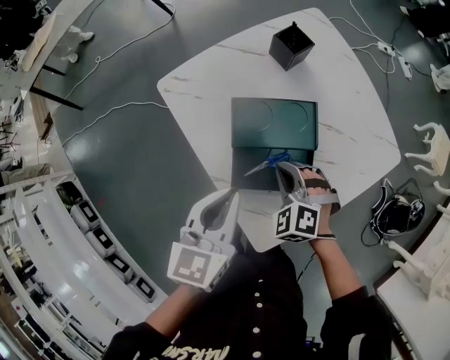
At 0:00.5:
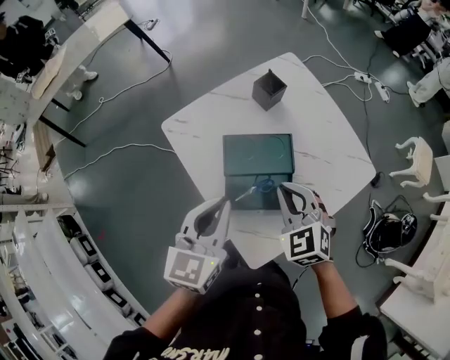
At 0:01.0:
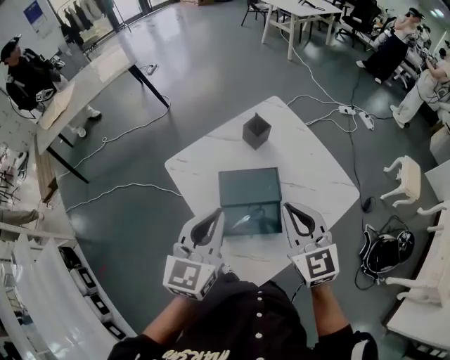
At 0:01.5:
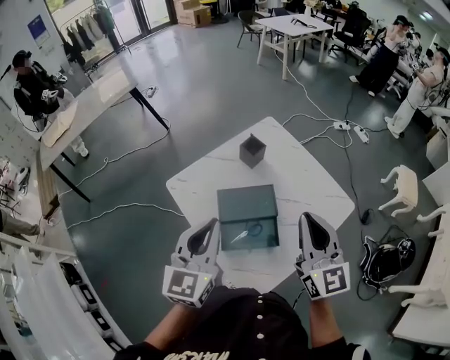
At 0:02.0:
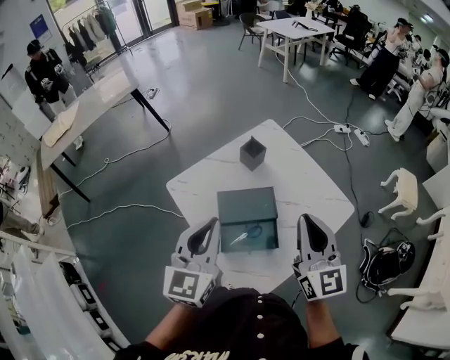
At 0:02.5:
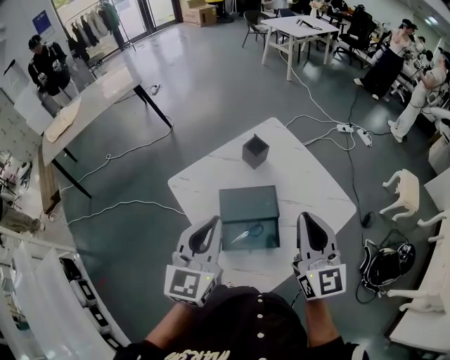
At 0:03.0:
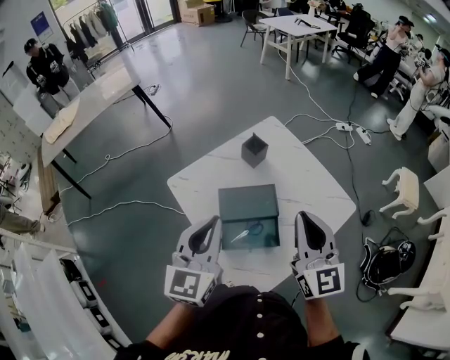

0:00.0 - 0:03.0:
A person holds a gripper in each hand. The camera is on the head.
0:00.0 - 0:01.5: The right gripper shifts about 35 cm upward, and points its fingers some 60 degrees further upward. Meanwhile the left gripper moves upward, about 15 cm, and swivels roughly 20 degrees.
0:01.5 - 0:03.0: The grippers make only small movements.

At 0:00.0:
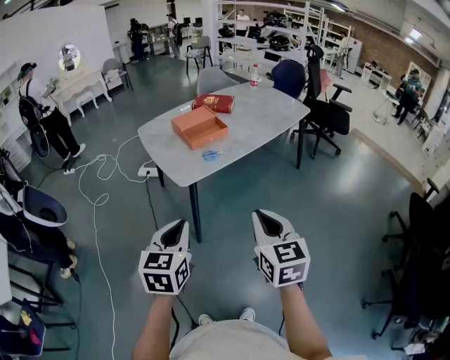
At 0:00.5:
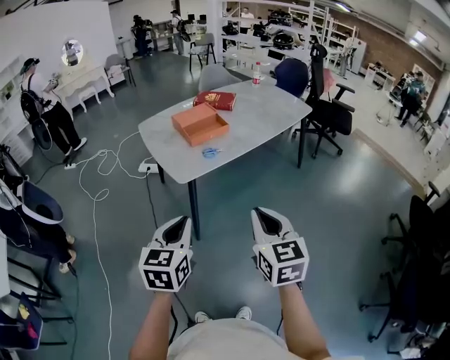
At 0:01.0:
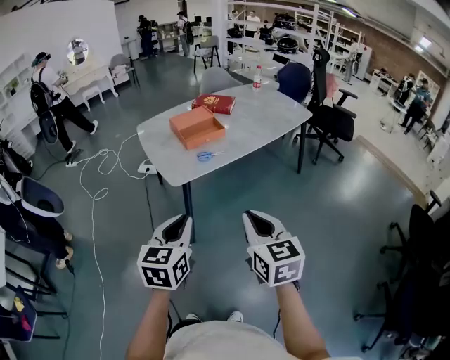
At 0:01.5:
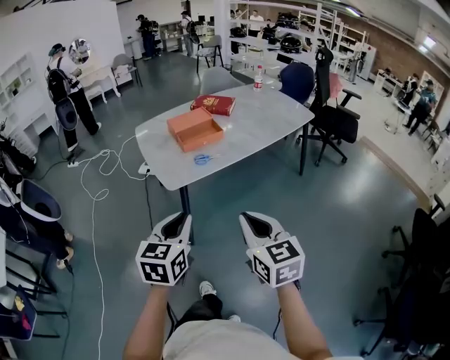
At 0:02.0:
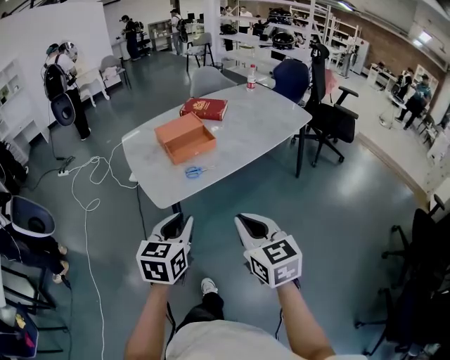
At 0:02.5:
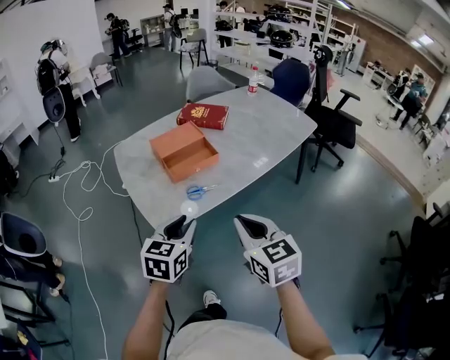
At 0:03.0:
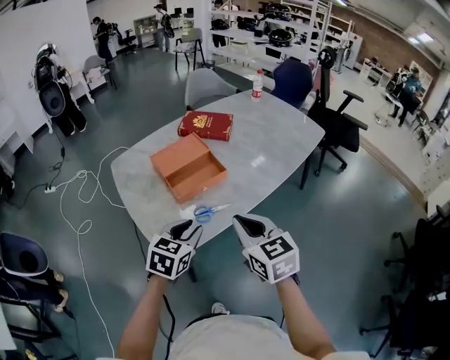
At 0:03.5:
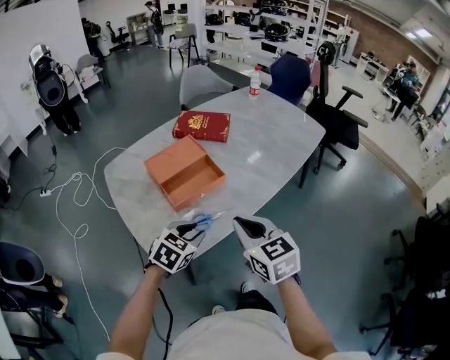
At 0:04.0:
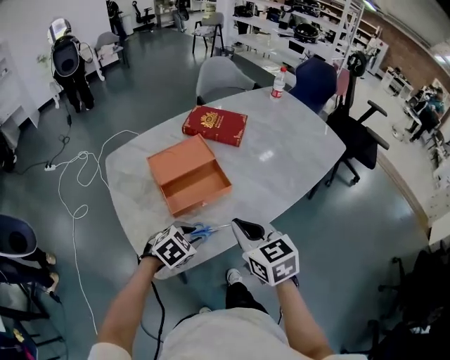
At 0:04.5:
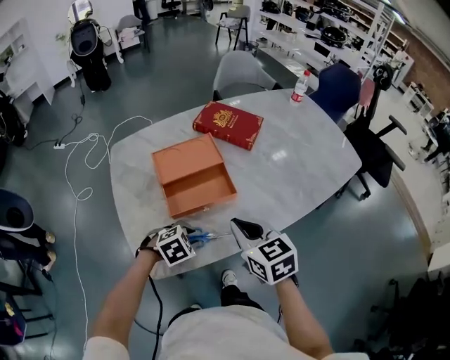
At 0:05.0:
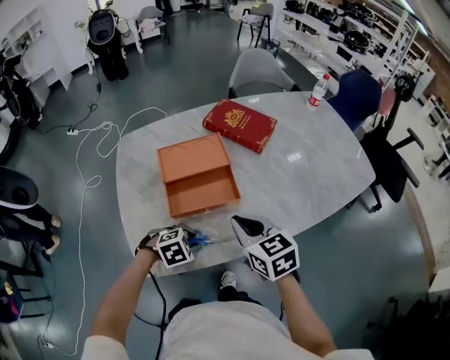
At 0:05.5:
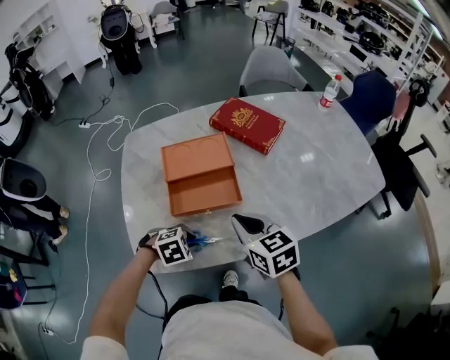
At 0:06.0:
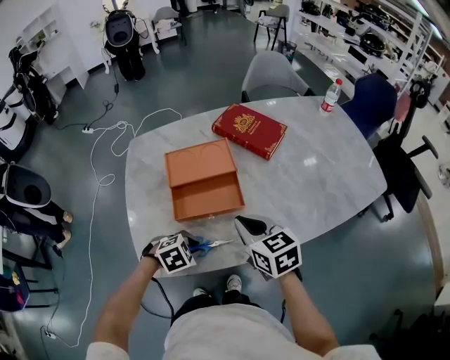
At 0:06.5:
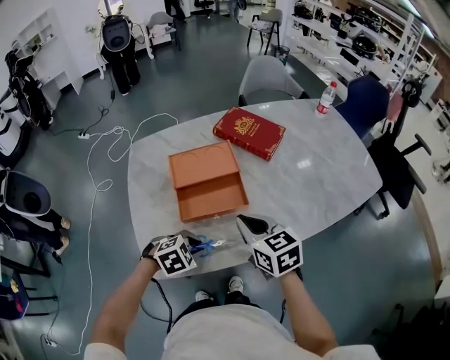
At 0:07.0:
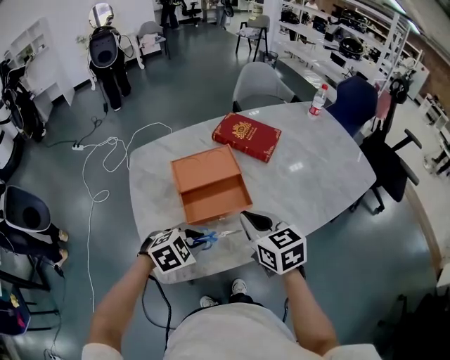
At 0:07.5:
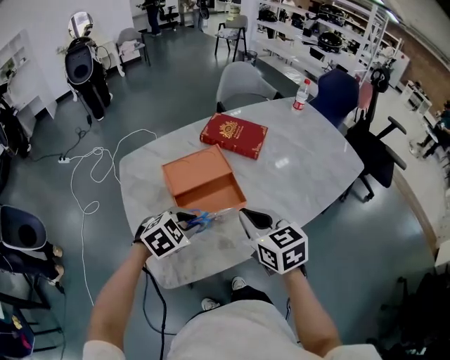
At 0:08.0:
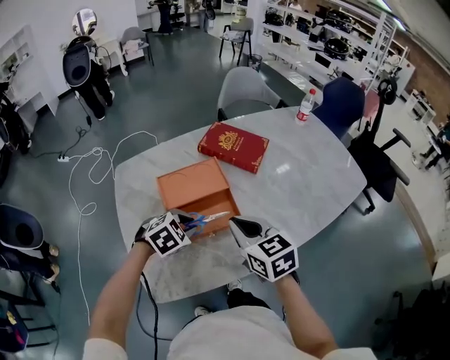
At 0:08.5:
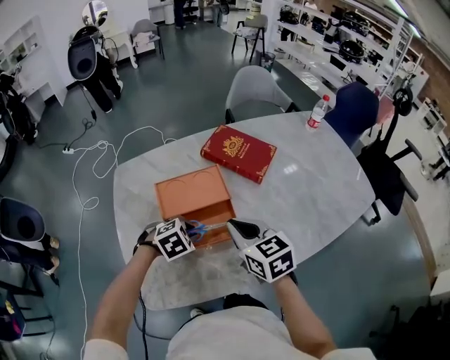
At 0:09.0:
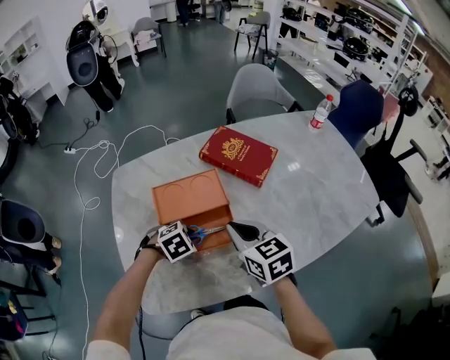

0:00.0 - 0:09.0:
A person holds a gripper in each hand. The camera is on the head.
0:00.0 - 0:02.0: Both grippers move forward and to the right, some 15 cm.
0:02.0 - 0:04.5: The left gripper heads forward and downward, covering about 40 cm, and points its fingers roughly 40 degrees further downward. The right gripper goes roughly 40 cm forward.
0:04.5 - 0:07.0: The right gripper shifts by about 5 cm. Meanwhile the left gripper goes about 10 cm upward.
0:07.0 - 0:09.0: The right gripper is displaced forward by roughly 10 cm. Meanwhile the left gripper is displaced forward and downward by roughly 15 cm.

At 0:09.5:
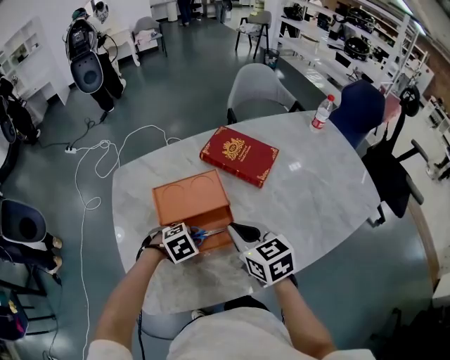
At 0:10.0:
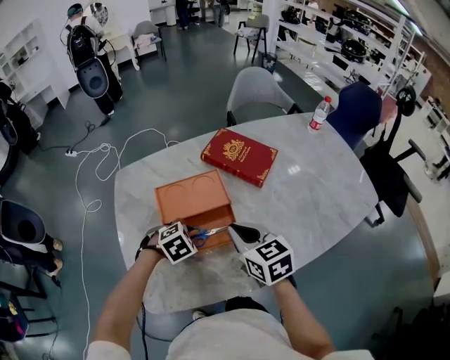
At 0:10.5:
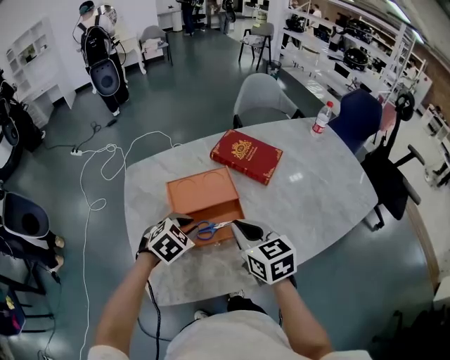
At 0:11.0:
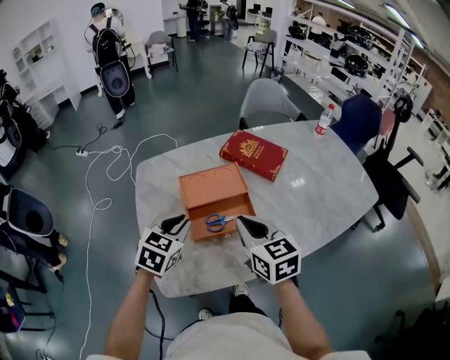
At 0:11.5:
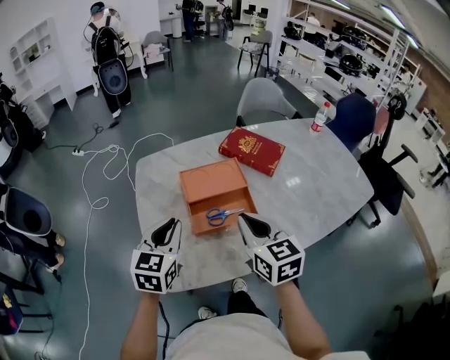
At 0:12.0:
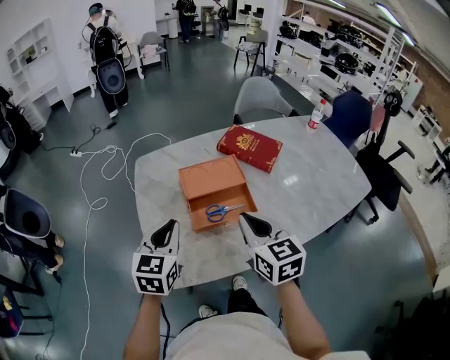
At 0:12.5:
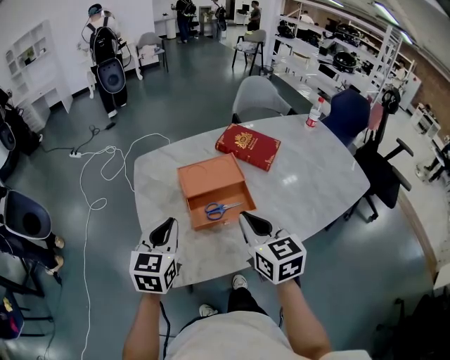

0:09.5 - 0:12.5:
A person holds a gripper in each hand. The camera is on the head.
0:09.5 - 0:11.0: The right gripper is displaced backward and upward by some 10 cm. Meanwhile the left gripper moves upward and to the left, approximately 20 cm, and points its fingers roughly 40 degrees further upward.
0:11.0 - 0:12.5: The right gripper ends up about 5 cm from where it was, while the left gripper heads backward, covering approximately 5 cm, and swivels approximately 20 degrees.

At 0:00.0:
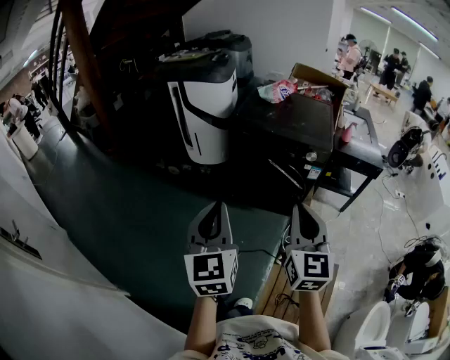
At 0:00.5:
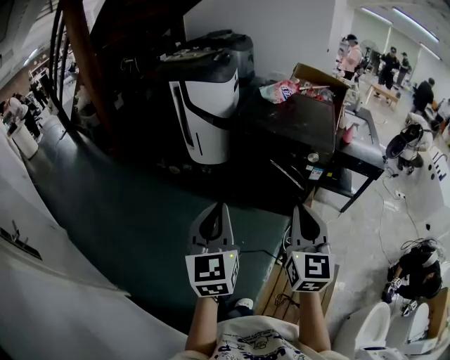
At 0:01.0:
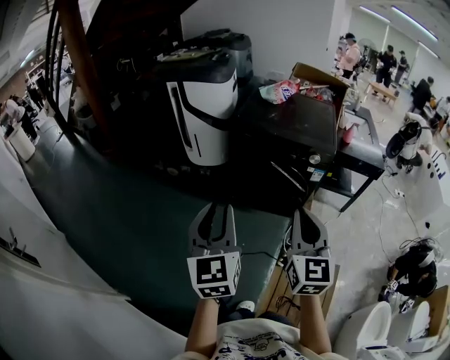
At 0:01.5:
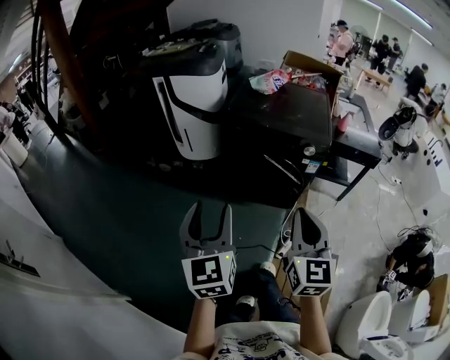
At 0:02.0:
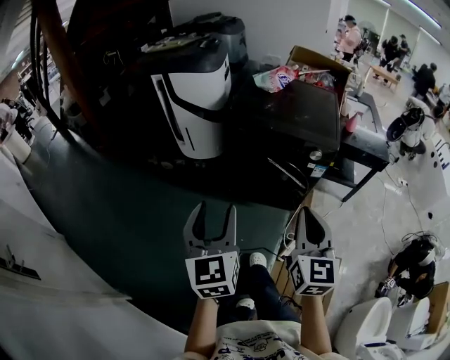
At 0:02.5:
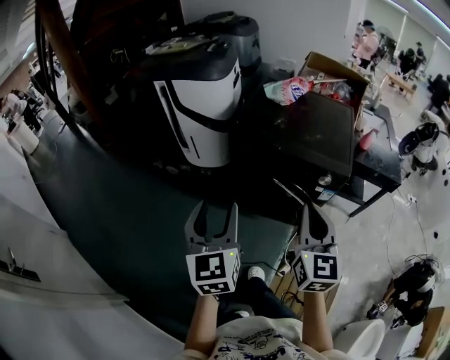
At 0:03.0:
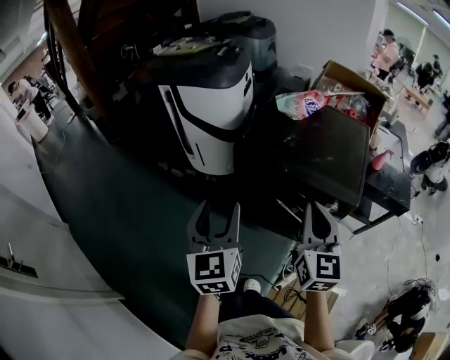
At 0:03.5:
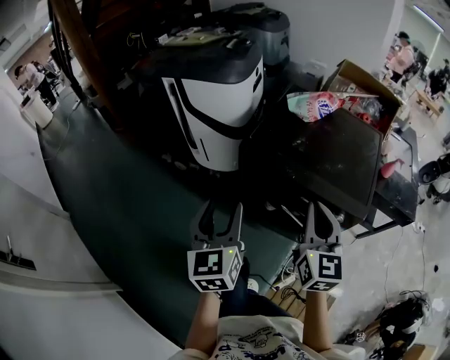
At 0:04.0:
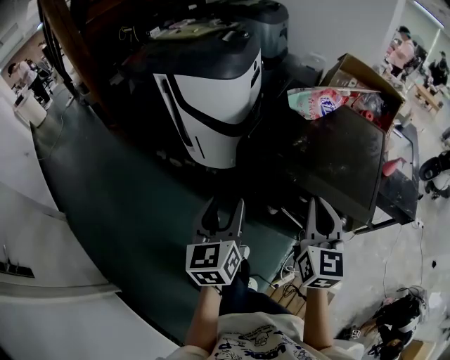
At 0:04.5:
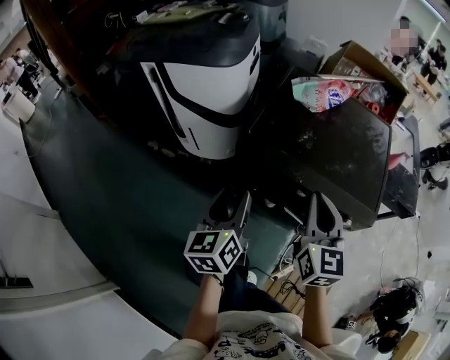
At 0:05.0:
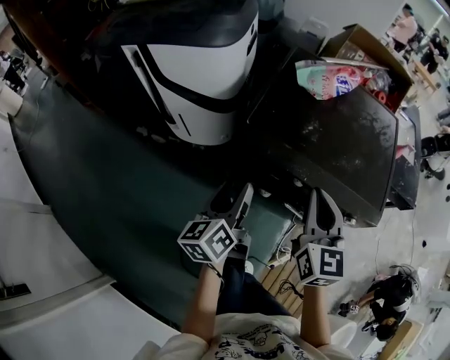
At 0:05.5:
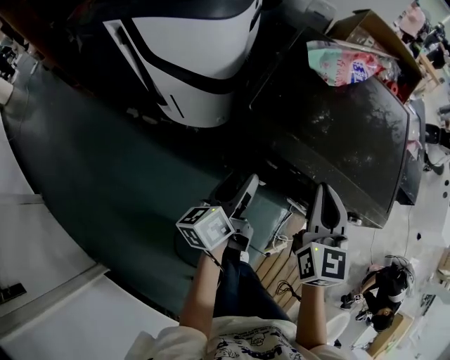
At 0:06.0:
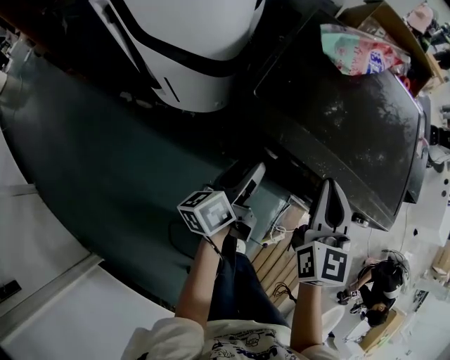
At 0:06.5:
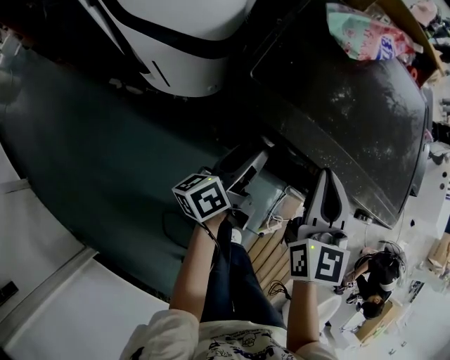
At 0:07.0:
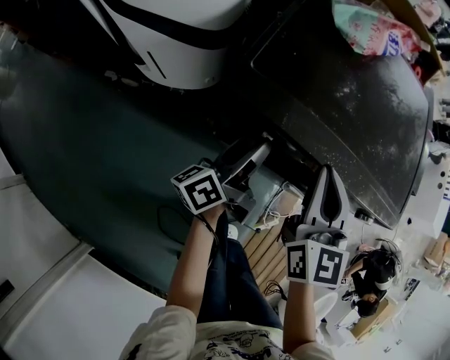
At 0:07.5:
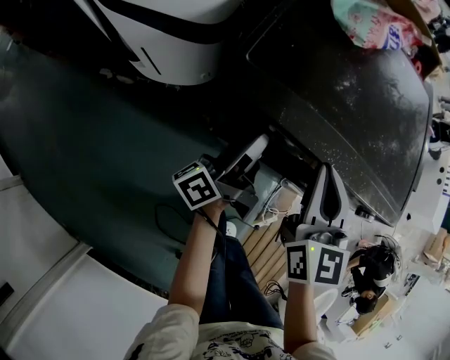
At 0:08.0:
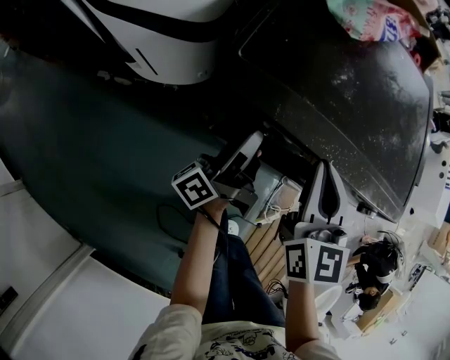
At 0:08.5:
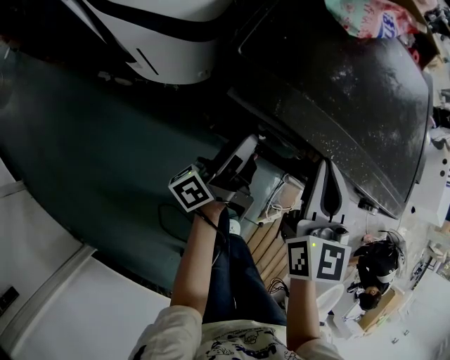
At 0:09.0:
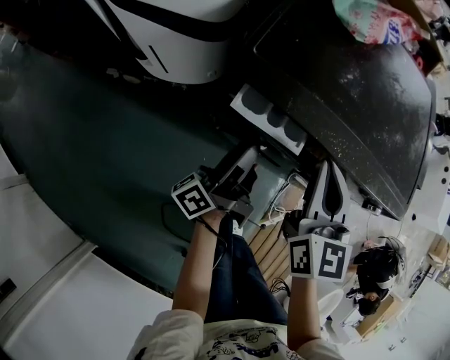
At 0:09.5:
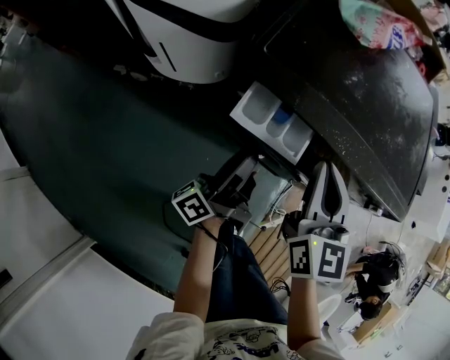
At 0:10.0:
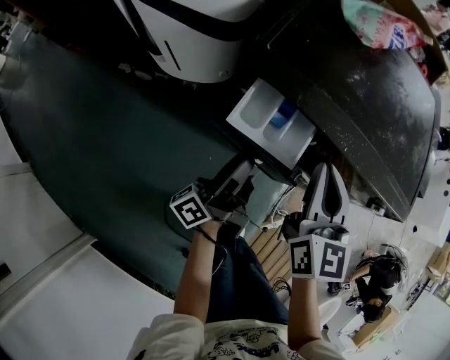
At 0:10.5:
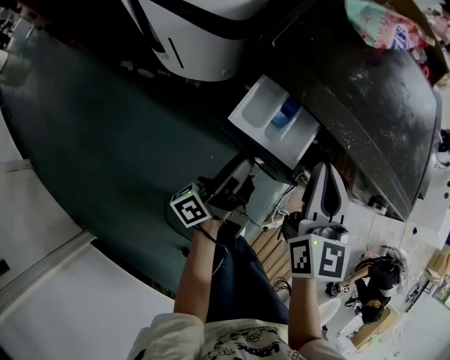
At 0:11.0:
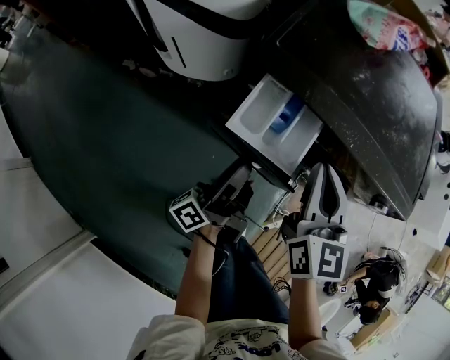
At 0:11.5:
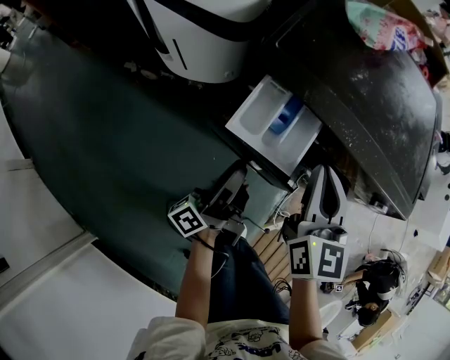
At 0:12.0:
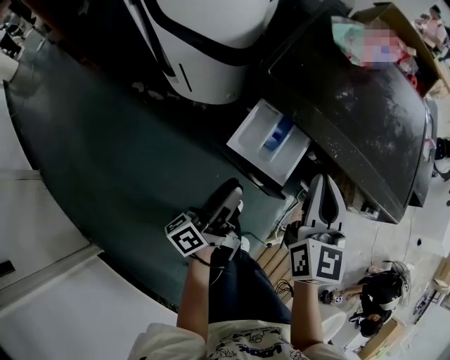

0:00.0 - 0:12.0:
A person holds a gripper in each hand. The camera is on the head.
0:00.0 - 0:02.0: The two grippers go roughly 15 cm forward. The left gripper opens its fingers.
0:02.0 - 0:04.0: Both grippers move forward, some 40 cm.
0:04.0 - 0:06.0: The grippers both shift downward and forward by roughly 30 cm. The left gripper twists approximately 40 degrees counterclockwise, seen from behind.
0:06.0 - 0:08.0: The left gripper changes place by approximately 5 cm, and changes its angle by approximately 30 degrees; the right gripper is displaced downward by about 5 cm.
0:08.0 - 0:10.0: The left gripper moves backward, approximately 10 cm.
0:10.0 - 0:12.0: The left gripper is displaced backward by approximately 5 cm.
